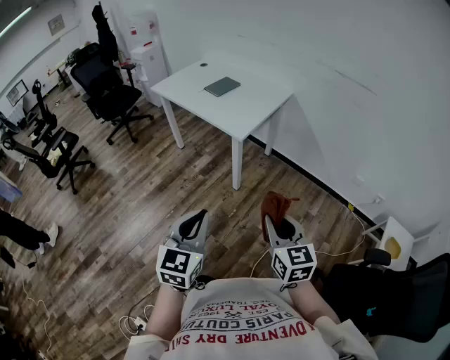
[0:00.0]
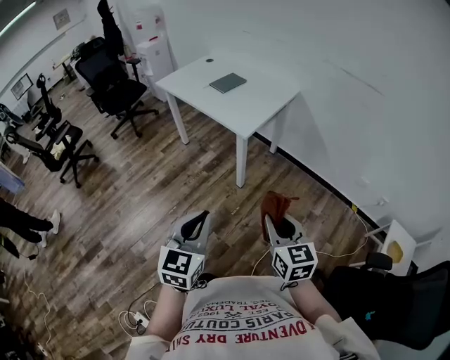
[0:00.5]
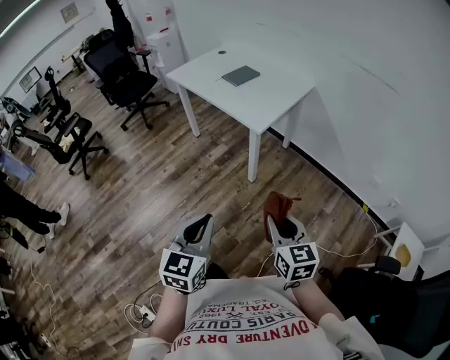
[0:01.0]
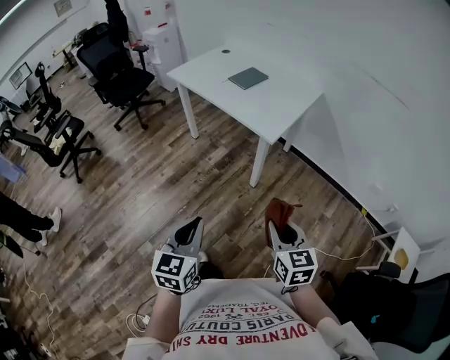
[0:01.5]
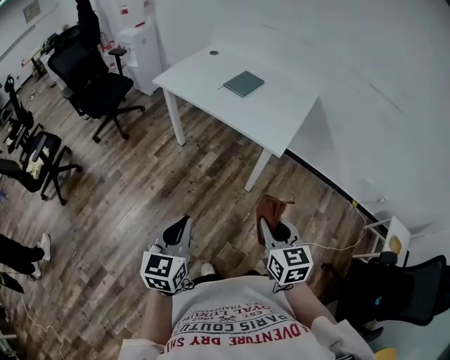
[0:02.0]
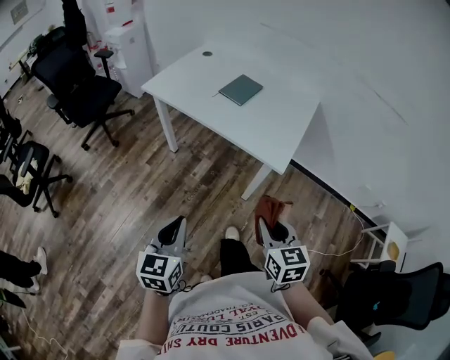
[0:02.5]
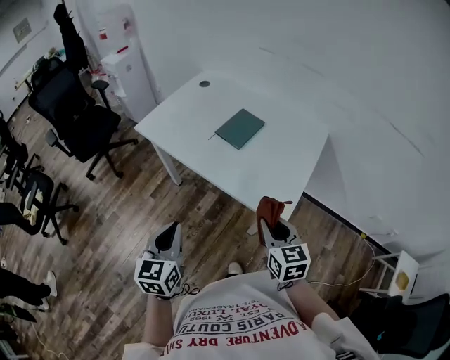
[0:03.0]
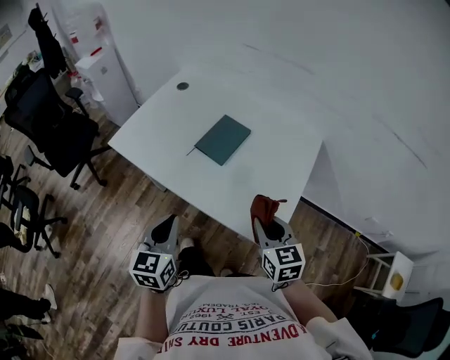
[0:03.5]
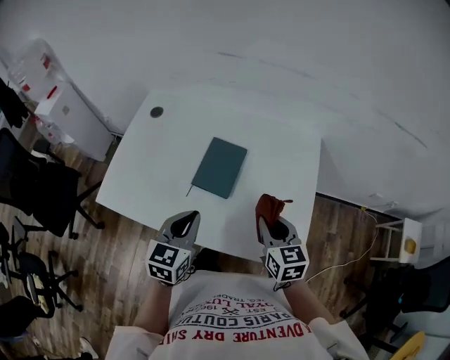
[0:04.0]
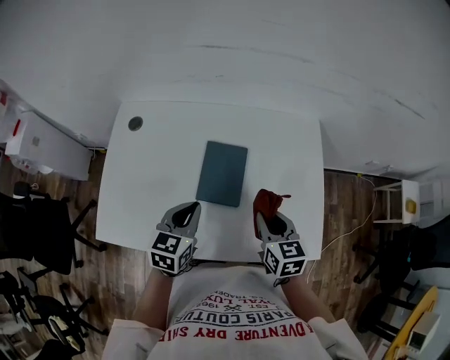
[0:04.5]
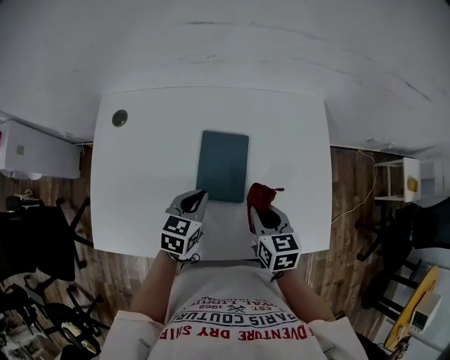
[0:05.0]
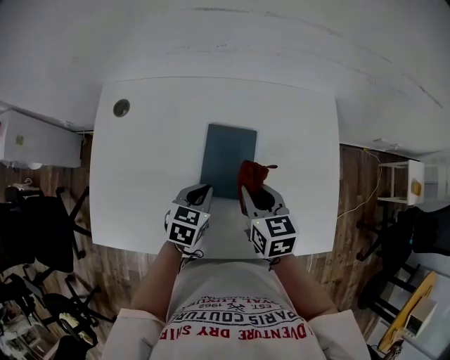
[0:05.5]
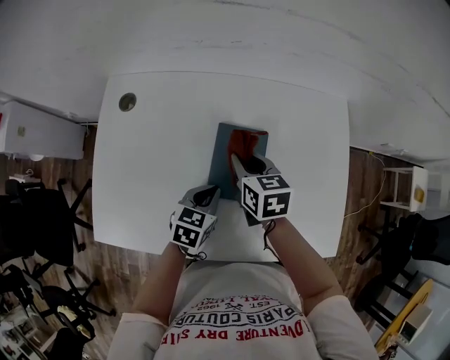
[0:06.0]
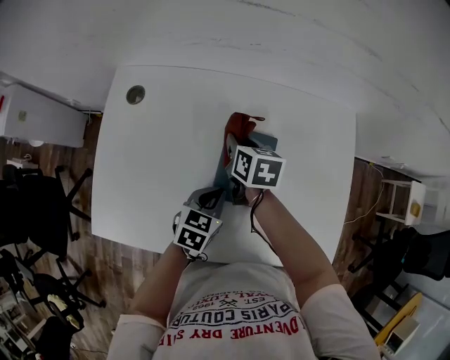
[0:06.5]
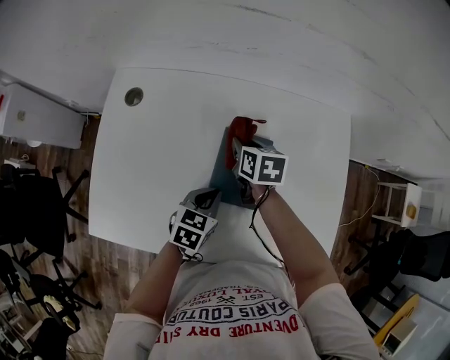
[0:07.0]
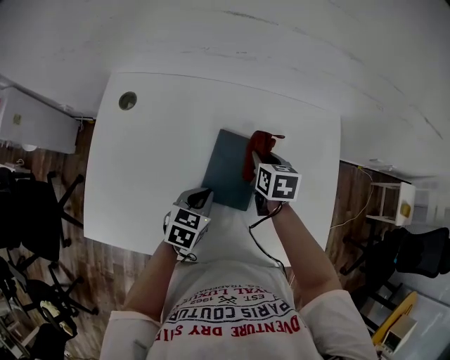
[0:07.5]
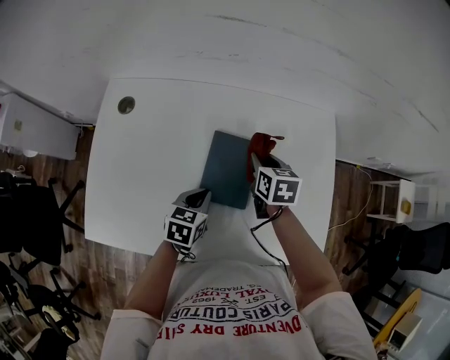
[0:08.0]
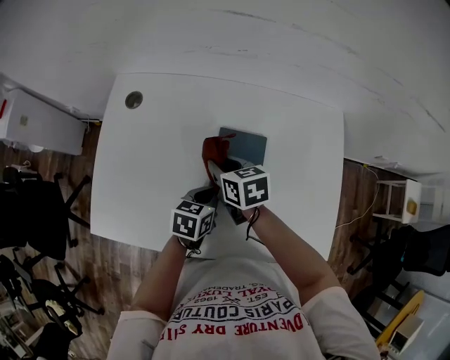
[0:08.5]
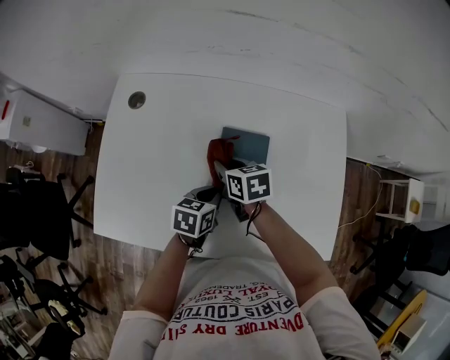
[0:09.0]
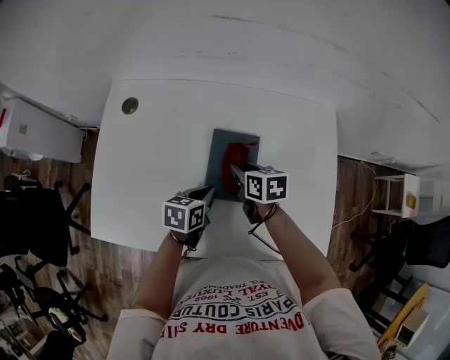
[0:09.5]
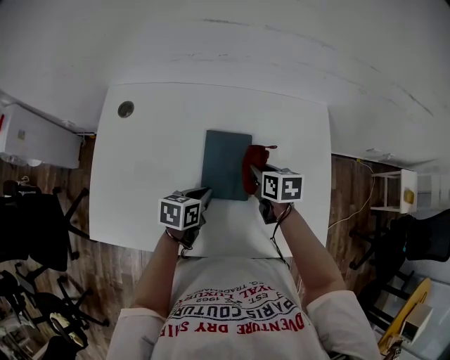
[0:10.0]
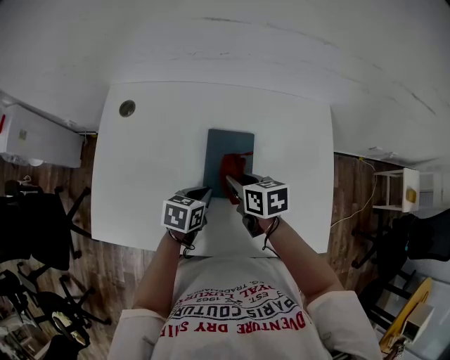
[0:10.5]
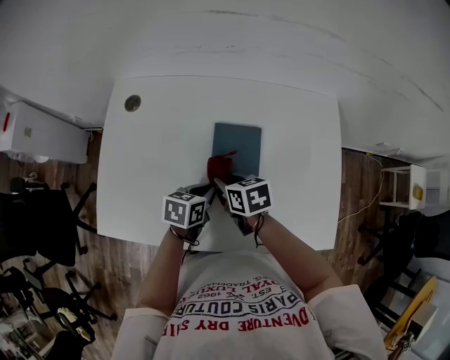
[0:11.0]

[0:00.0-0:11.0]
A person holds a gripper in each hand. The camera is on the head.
0:00.0 to 0:02.0: Both grippers move to the left and forward, approximately 35 cm.
0:02.0 to 0:03.5: Both grippers are carried forward, about 50 cm.
0:03.5 to 0:05.5: The left gripper moves about 40 cm, and changes its angle by approximately 50 degrees, while the right gripper shifts by some 35 cm, and swivels roughly 30 degrees.
0:05.5 to 0:07.5: The right gripper heads forward and downward, covering approximately 15 cm.
0:07.5 to 0:09.0: The right gripper travels to the left and backward by about 15 cm, and turns by about 20 degrees.
0:09.0 to 0:11.0: The right gripper goes roughly 5 cm backward, and goes to the right and returns, roughly 15 cm each way.

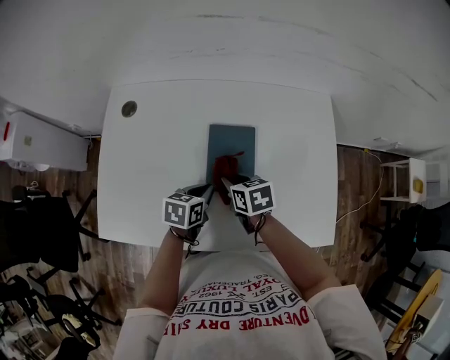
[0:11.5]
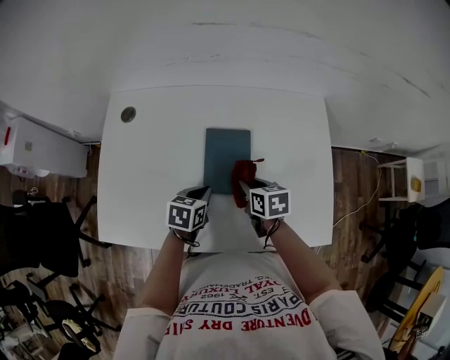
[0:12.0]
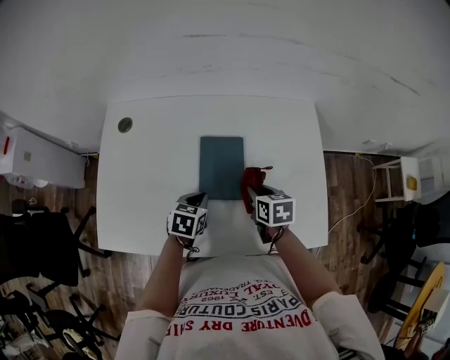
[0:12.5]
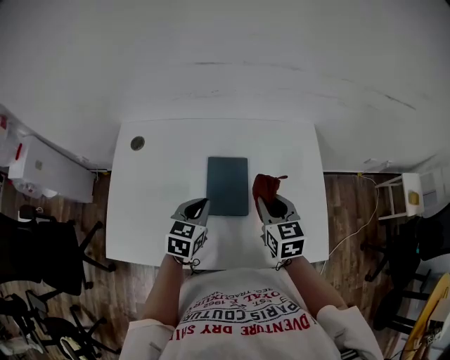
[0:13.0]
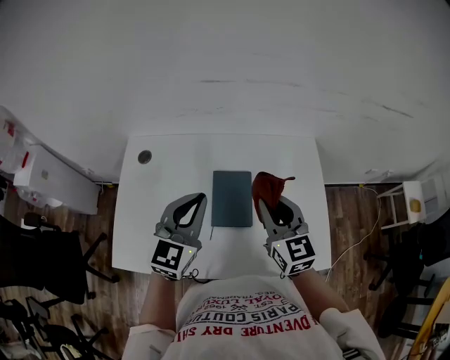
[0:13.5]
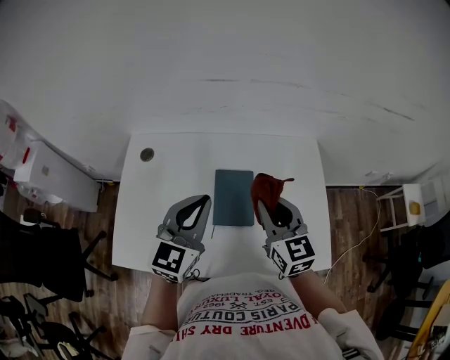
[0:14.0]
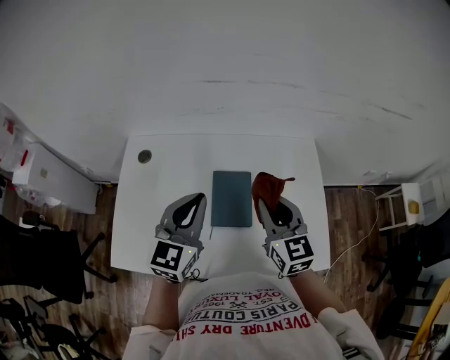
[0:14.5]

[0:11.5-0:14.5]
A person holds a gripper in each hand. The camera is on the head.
0:11.5 to 0:13.0: The right gripper travels upward and to the right by some 20 cm, and rotates about 30 degrees, while the left gripper travels upward by roughly 10 cm, and swivels about 30 degrees.
0:13.0 to 0:14.5: The left gripper shifts roughly 20 cm upward, and turns by approximately 30 degrees, while the right gripper heads upward, covering about 10 cm.

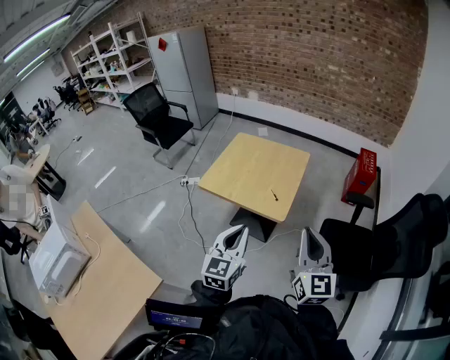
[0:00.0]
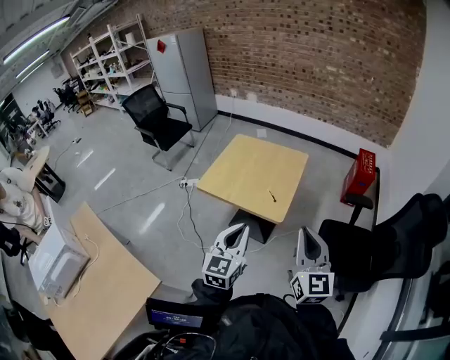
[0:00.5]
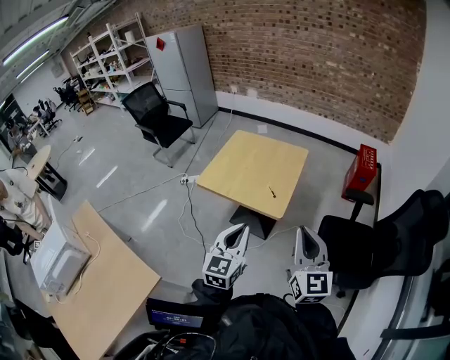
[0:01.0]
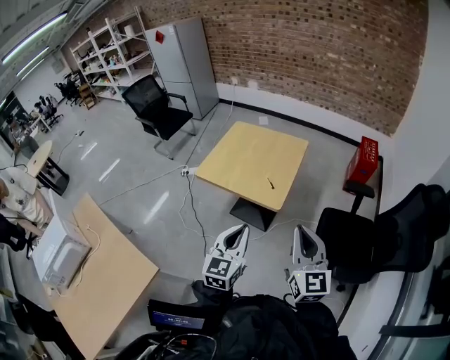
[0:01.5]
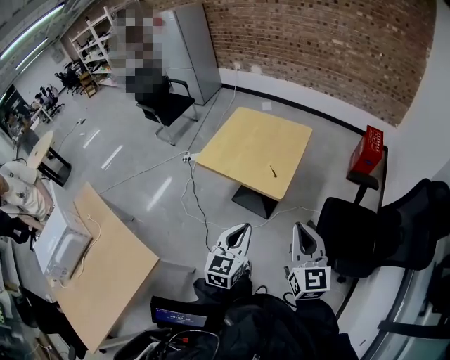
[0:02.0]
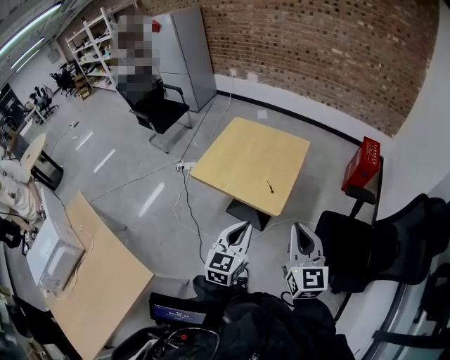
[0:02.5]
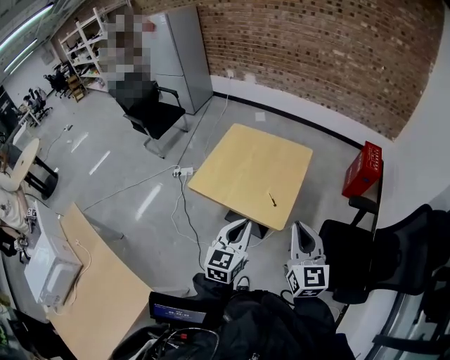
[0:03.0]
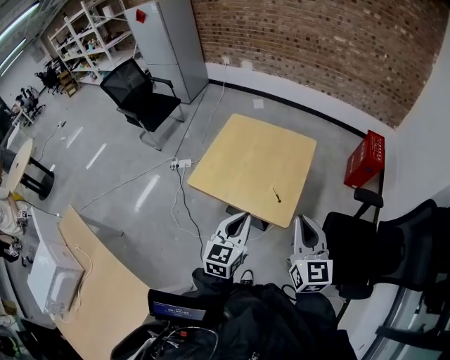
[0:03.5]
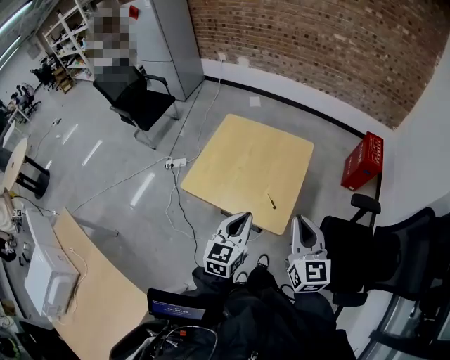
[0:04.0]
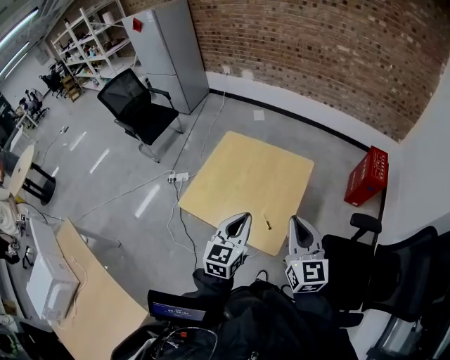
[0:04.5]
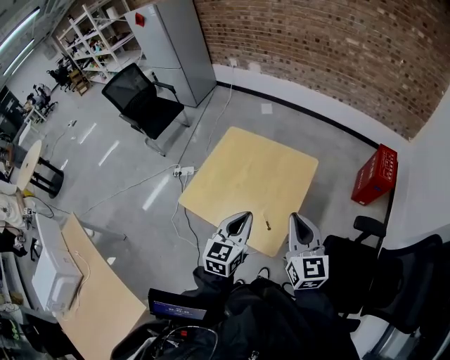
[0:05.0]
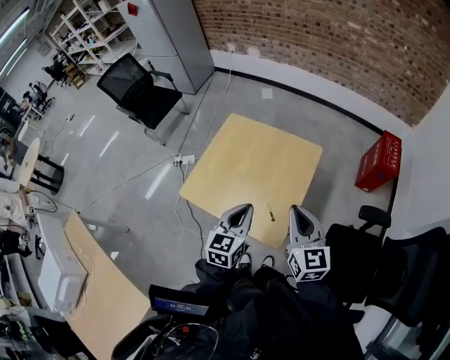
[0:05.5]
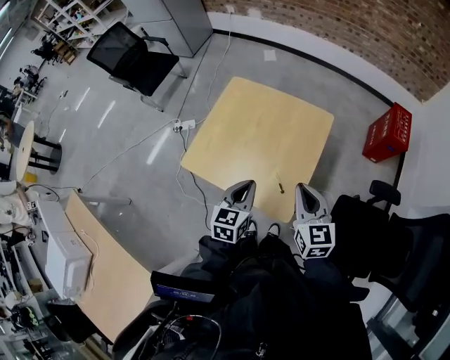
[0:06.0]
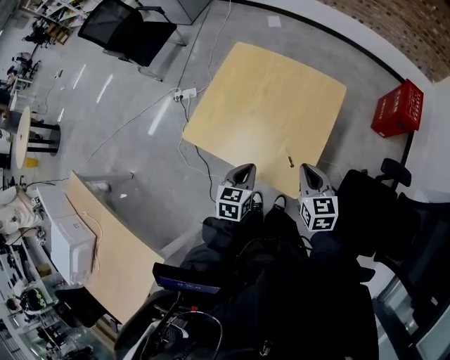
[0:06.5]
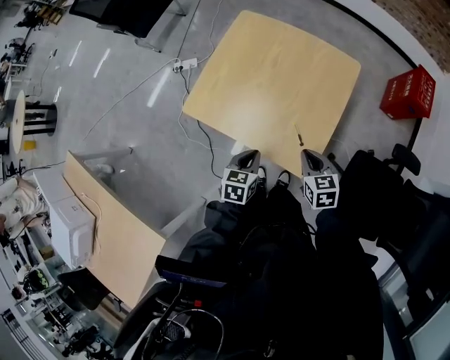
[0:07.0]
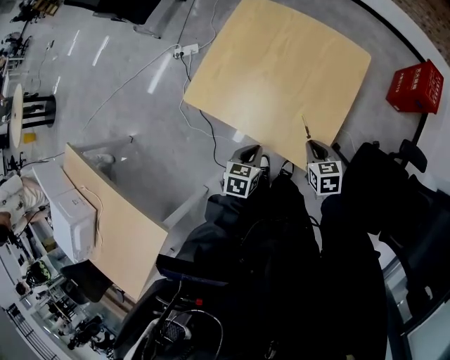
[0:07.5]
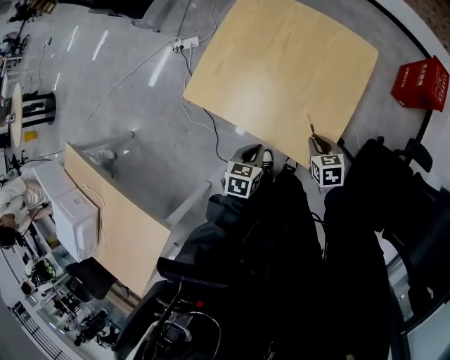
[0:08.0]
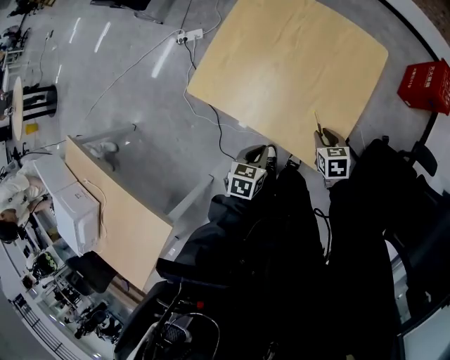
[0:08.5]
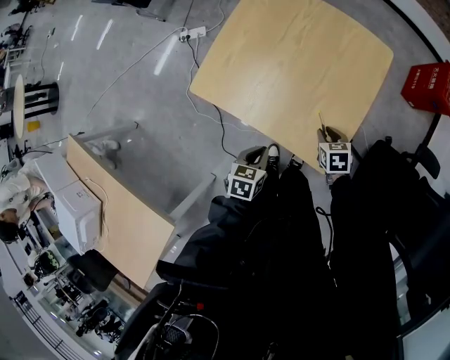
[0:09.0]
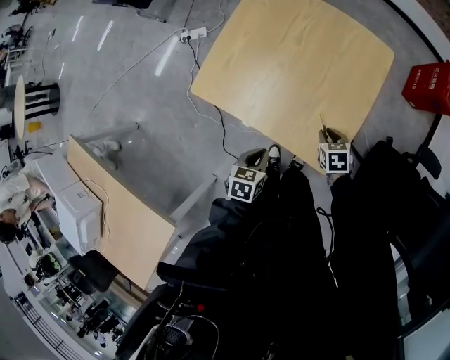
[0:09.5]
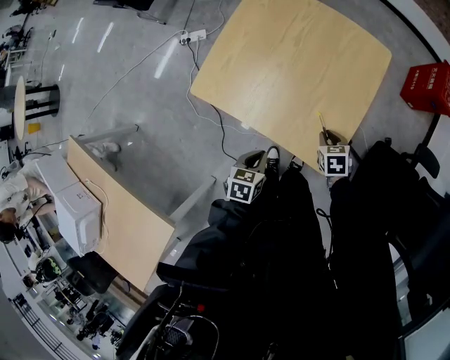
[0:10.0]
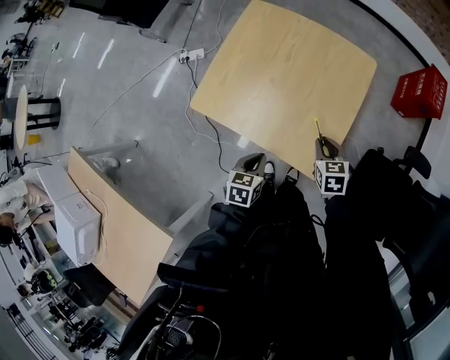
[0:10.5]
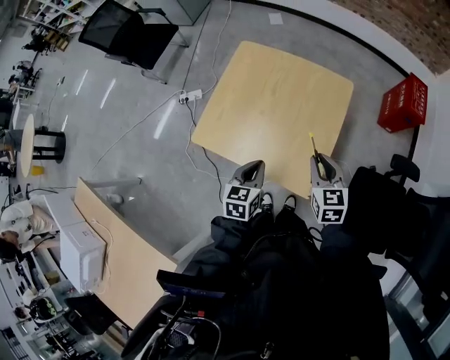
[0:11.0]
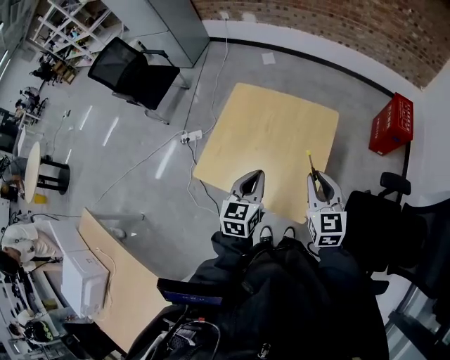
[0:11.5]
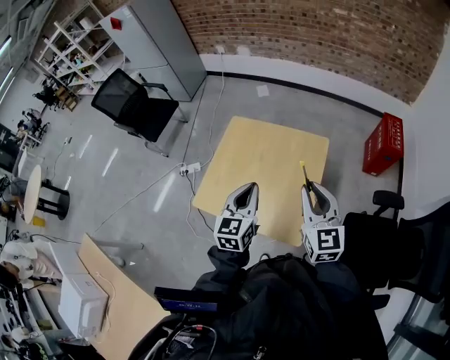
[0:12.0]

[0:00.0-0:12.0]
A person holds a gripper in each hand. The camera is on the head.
0:00.0 to 0:02.0: The left gripper heads downward and to the right, covering some 10 cm; the right gripper heads downward, covering some 5 cm.
0:02.0 to 0:04.0: The two grippers go approximately 25 cm forward.
0:04.0 to 0:06.0: Both grippers move forward and downward, approximately 15 cm.
0:06.0 to 0:08.0: Both grippers travel together downward, approximately 25 cm. The right gripper angles its fingers downward, by some 40 degrees. The left gripper turns by some 30 degrees.
0:08.0 to 0:10.0: The right gripper shifts by roughly 5 cm.
0:10.0 to 0:12.0: The right gripper is displaced upward by approximately 40 cm, and tilts its fingers about 50 degrees upward; the left gripper heads upward and forward, covering about 35 cm, and tilts its fingers approximately 40 degrees upward.

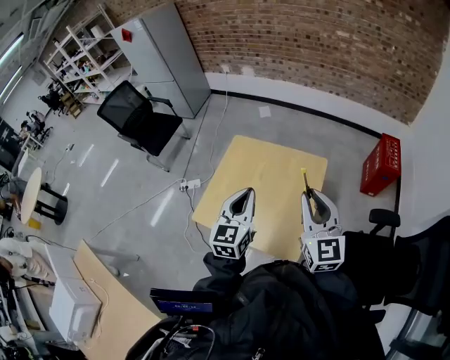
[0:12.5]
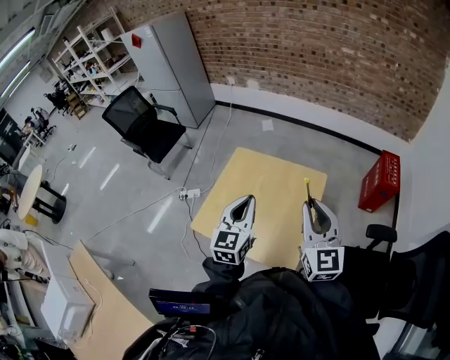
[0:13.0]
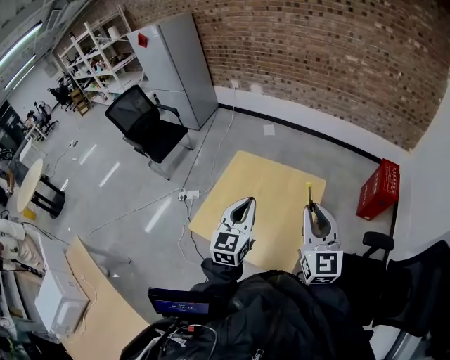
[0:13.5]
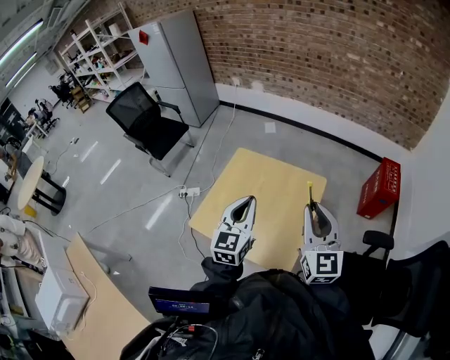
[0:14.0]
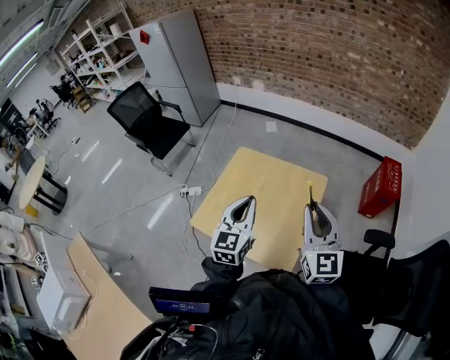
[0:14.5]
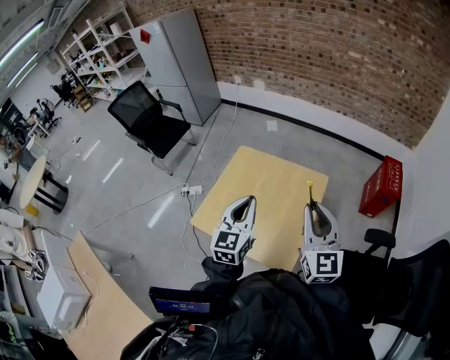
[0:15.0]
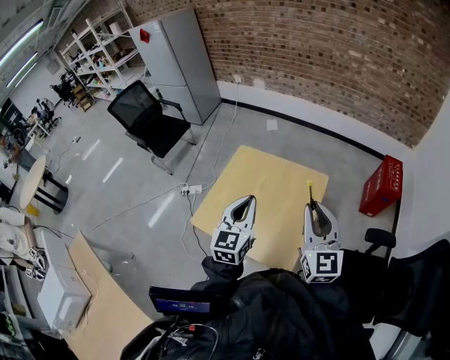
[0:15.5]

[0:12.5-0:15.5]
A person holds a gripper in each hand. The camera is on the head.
0:12.5 to 0:14.0: The grippers make only small movements.
0:14.0 to 0:15.5: The two grippers keep their place.
